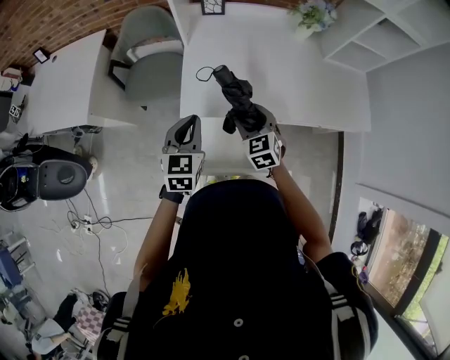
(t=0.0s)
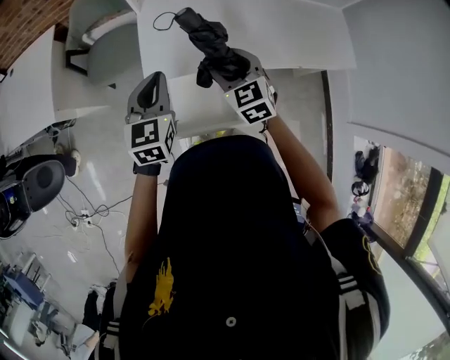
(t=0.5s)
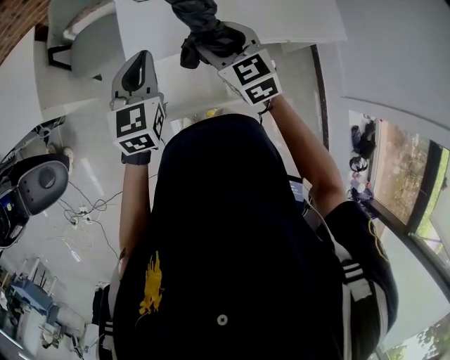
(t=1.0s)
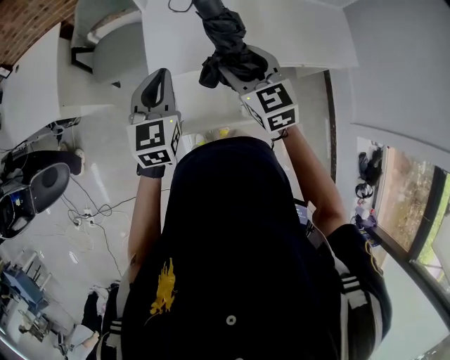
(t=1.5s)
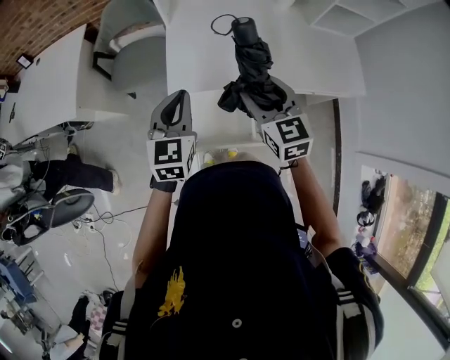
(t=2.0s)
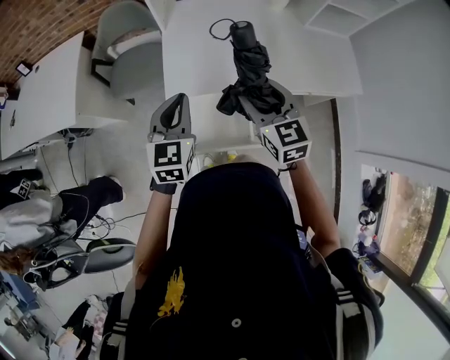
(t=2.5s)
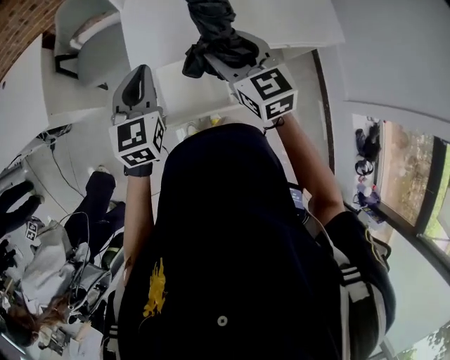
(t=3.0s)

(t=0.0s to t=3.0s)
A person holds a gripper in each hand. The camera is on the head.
t=0.0s - t=1.5s: The right gripper shifts about 15 cm upward and backward. Meanwhile the left gripper goes some 5 cm upward.
t=1.5s - t=3.0s: The grippers move only a little.

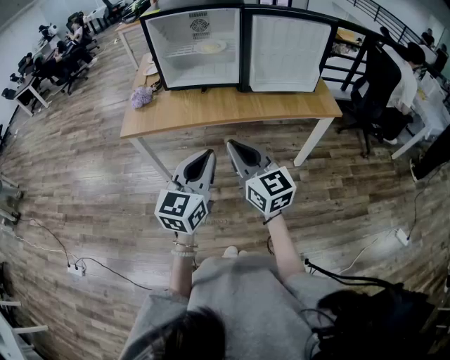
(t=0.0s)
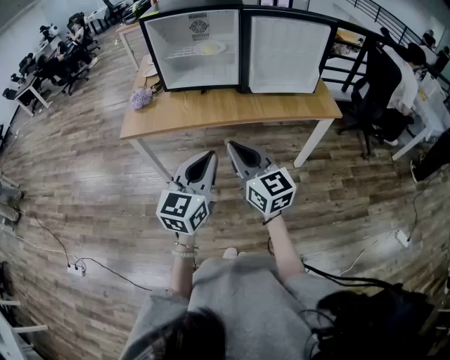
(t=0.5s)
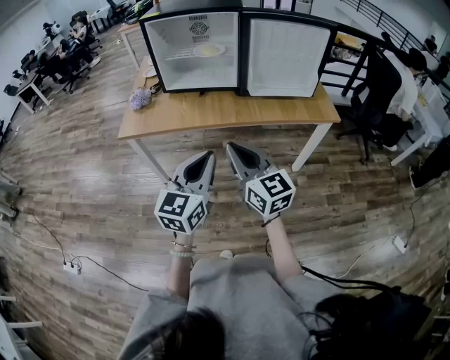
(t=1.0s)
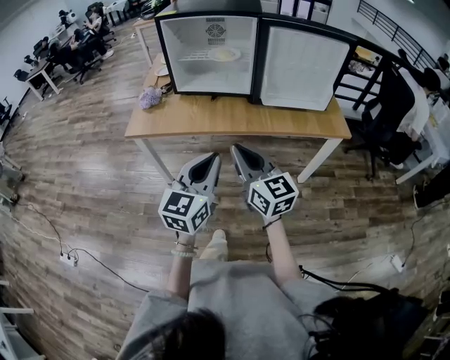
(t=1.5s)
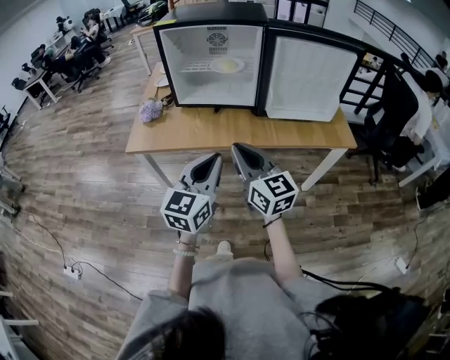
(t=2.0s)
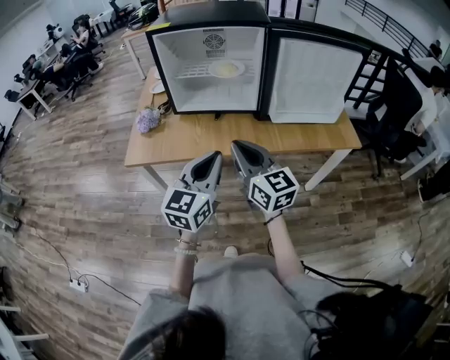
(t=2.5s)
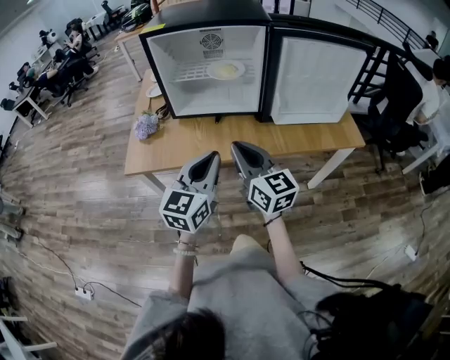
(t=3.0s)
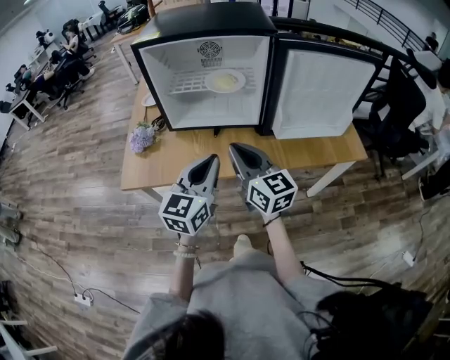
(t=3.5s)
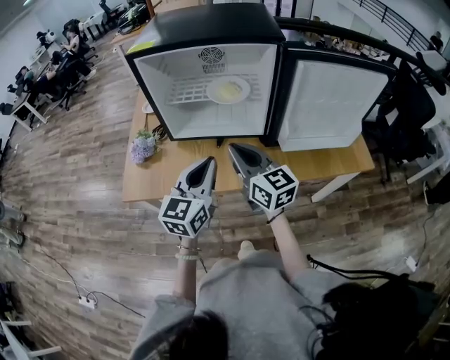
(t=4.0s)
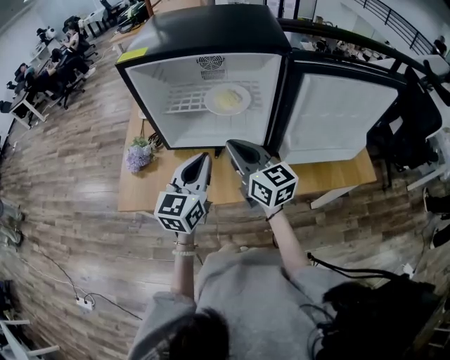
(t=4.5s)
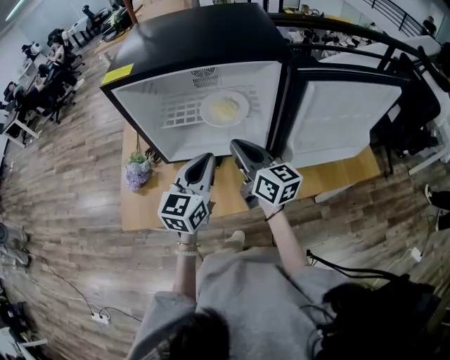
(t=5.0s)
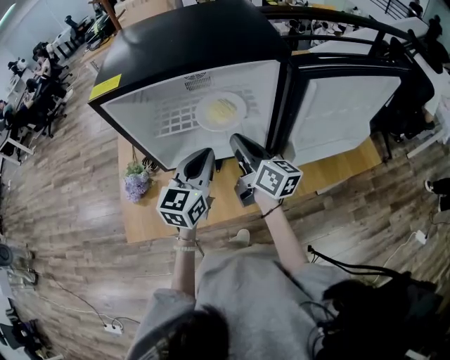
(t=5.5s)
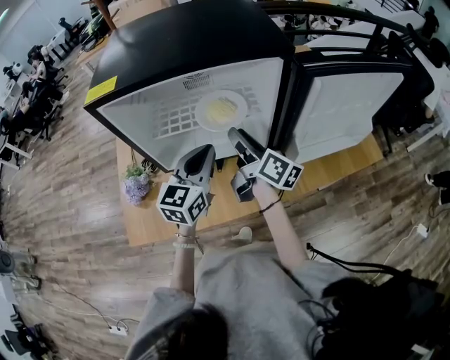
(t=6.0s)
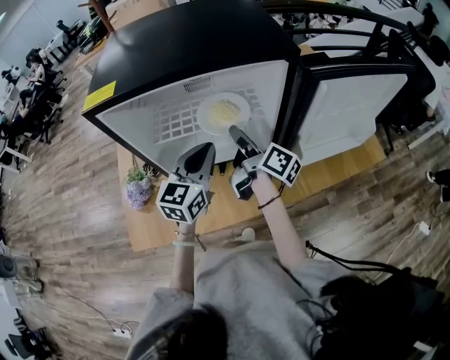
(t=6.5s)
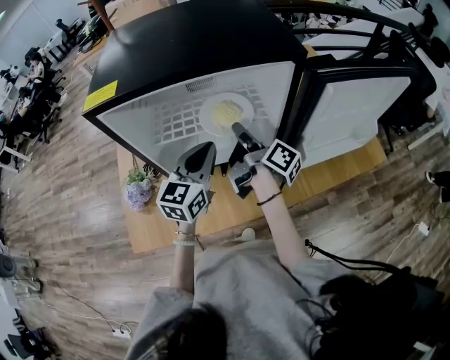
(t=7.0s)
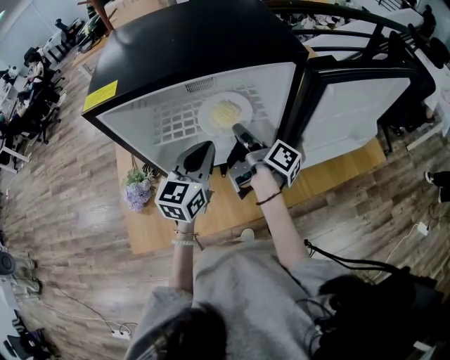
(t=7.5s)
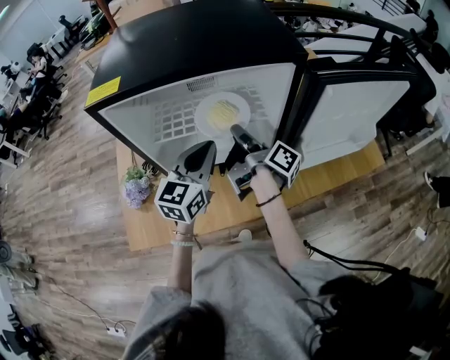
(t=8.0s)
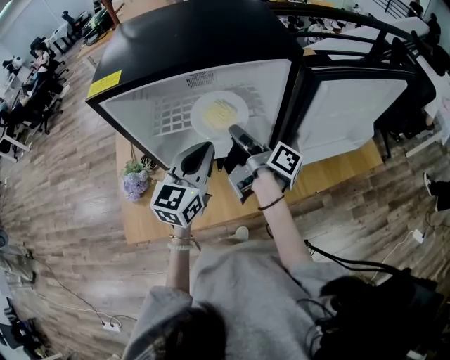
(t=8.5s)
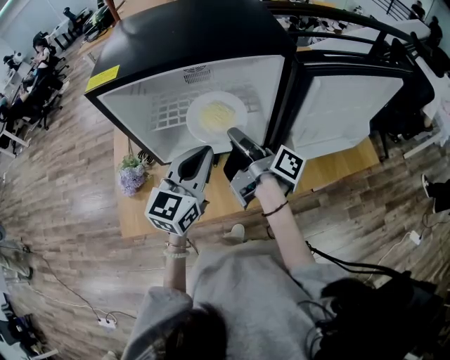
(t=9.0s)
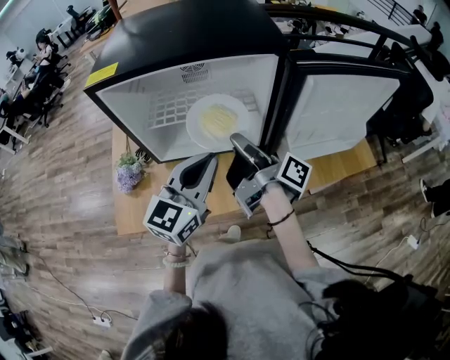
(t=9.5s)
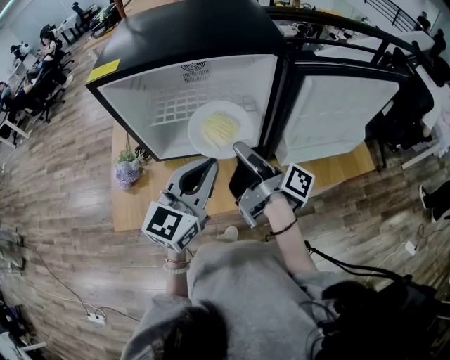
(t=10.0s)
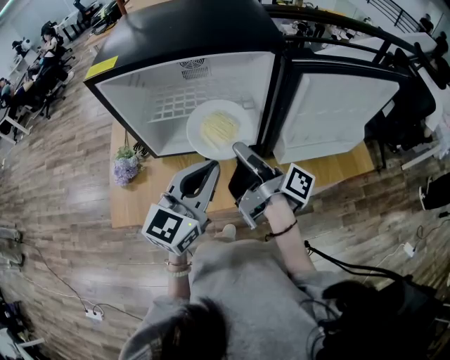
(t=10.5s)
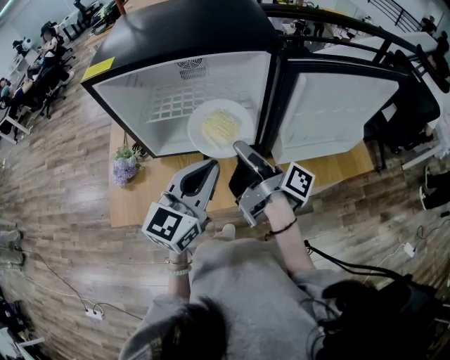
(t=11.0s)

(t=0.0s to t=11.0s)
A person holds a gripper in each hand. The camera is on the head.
t=0.0s - t=2.0s: The grippers both shift forward by some 10 cm.
t=2.0s - t=3.5s: Both grippers travel together forward, roughly 15 cm.
t=3.5s - t=5.5s: Both grippers move forward, roughly 20 cm. The right gripper turns by approximately 30 degrees.
t=5.5s - t=7.5s: The right gripper goes about 5 cm forward, rotates around the line of its fingers by approximately 50 degrees, clockwise from behind, and opens, then closes once more.
t=7.5s - t=9.0s: The grippers both shift backward by about 5 cm.
t=9.0s - t=11.0s: Both grippers travel together backward, about 5 cm.

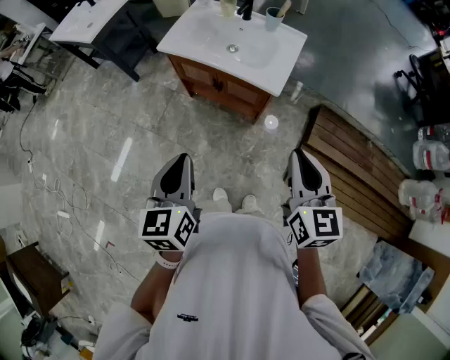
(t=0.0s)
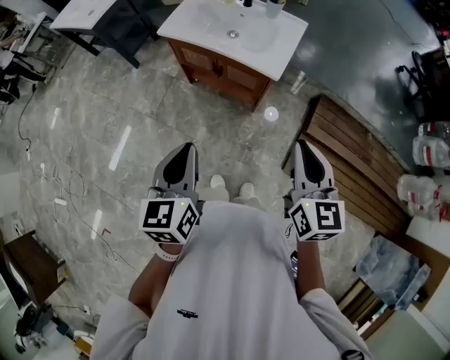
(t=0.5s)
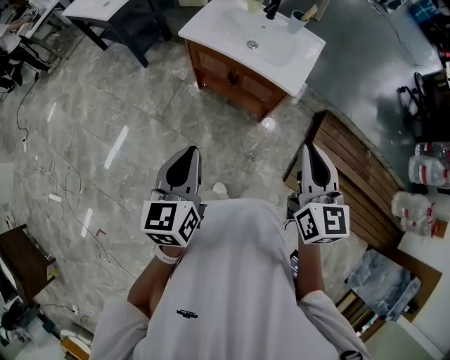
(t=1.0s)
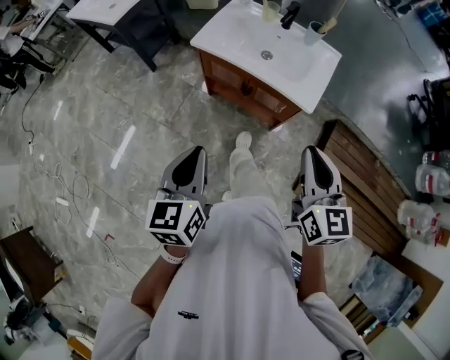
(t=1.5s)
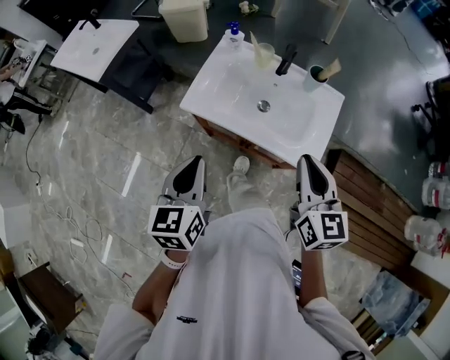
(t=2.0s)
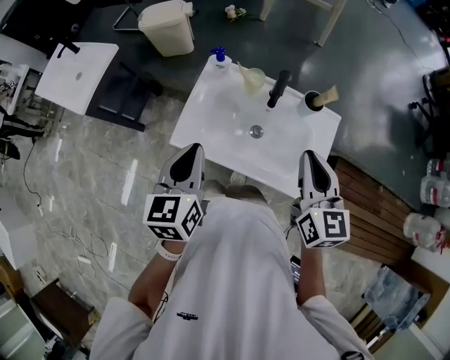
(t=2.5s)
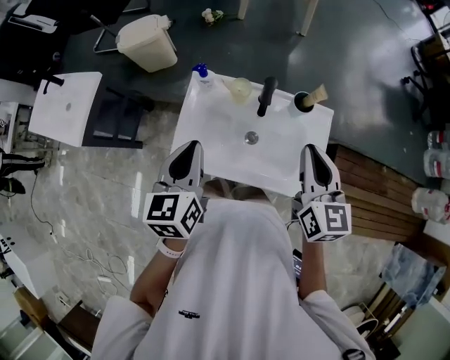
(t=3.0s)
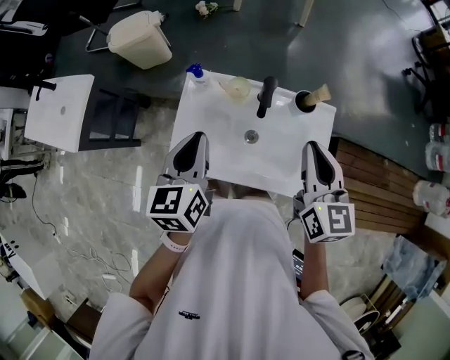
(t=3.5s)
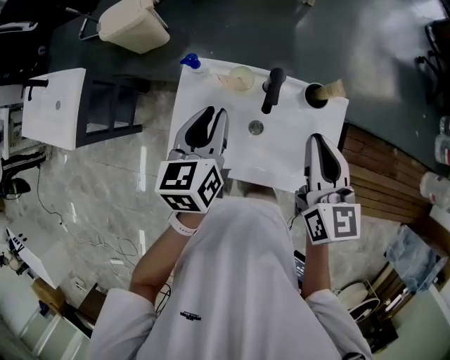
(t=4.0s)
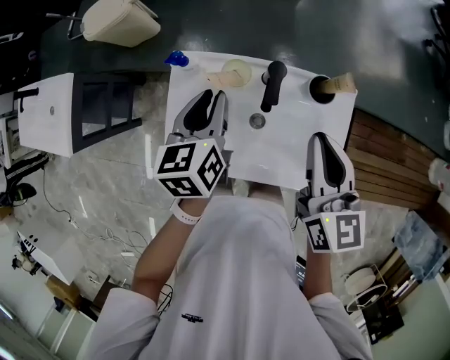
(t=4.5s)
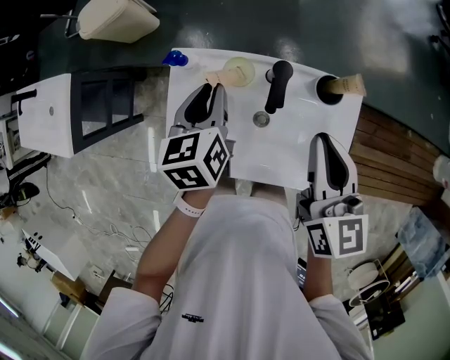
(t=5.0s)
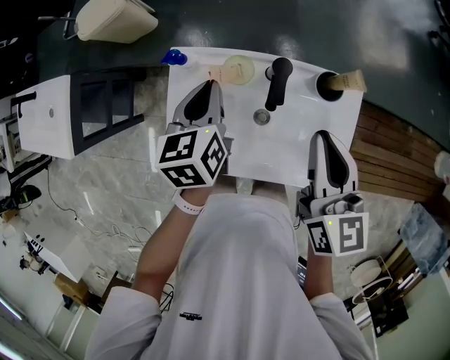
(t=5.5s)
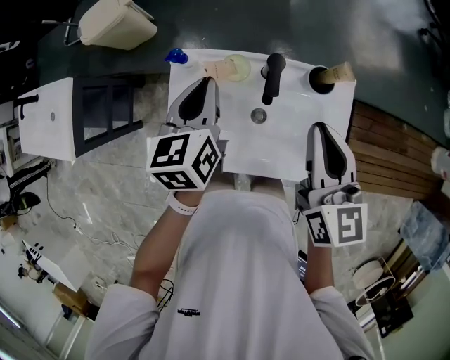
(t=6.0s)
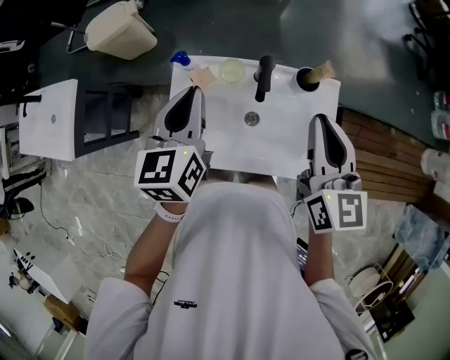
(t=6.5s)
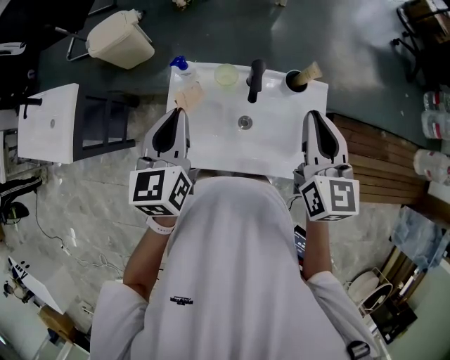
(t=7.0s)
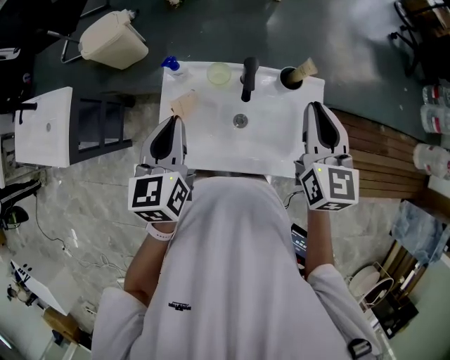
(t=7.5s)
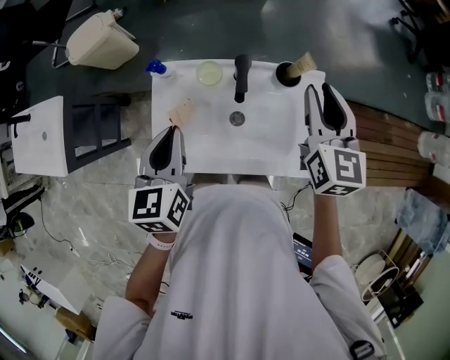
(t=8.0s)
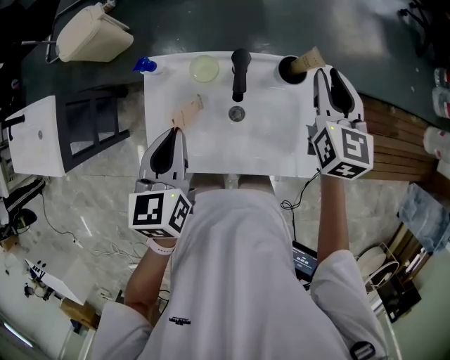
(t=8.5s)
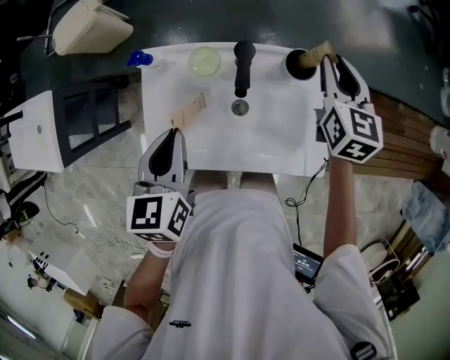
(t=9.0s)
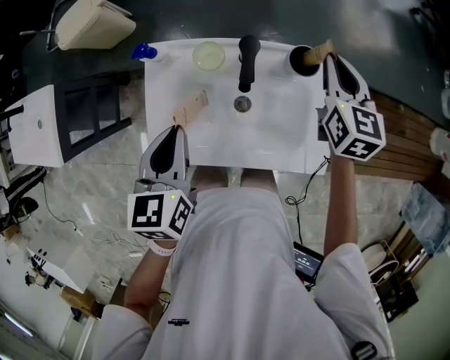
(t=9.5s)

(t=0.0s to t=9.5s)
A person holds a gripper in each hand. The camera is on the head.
t=0.0s - t=2.0s: Both grippers move forward, approximately 30 cm.
t=2.0s - t=4.0s: The grippers both shift forward by roughly 30 cm.
t=4.0s - t=5.5s: The left gripper moves downward and forward, roughly 10 cm.
t=5.5s - t=7.5s: The left gripper heads upward and backward, covering about 15 cm. The right gripper heads upward, covering approximately 5 cm.
t=7.5s - t=9.5s: The right gripper is displaced downward and forward by approximately 20 cm. Meanwhile the left gripper shifts some 10 cm downward.

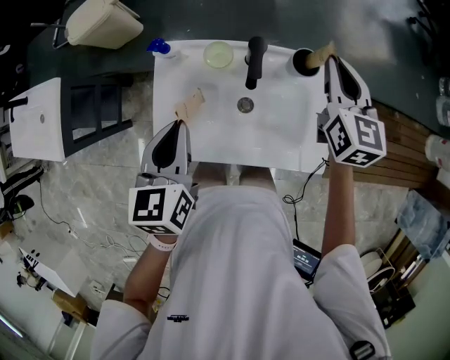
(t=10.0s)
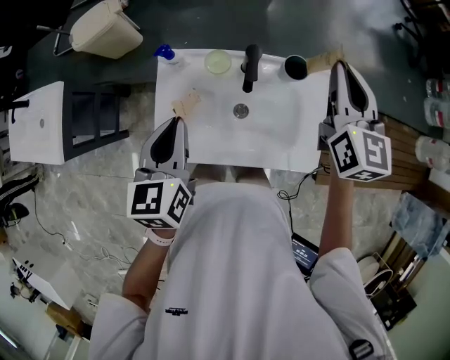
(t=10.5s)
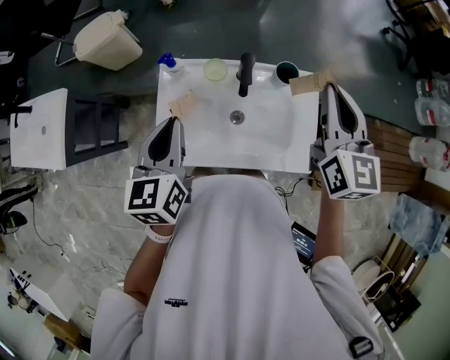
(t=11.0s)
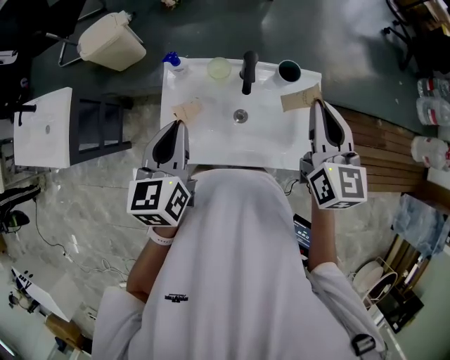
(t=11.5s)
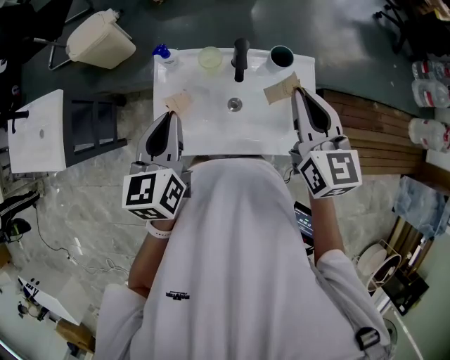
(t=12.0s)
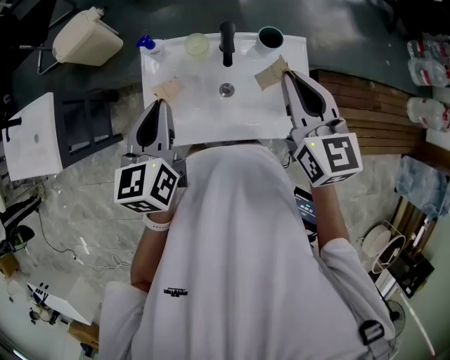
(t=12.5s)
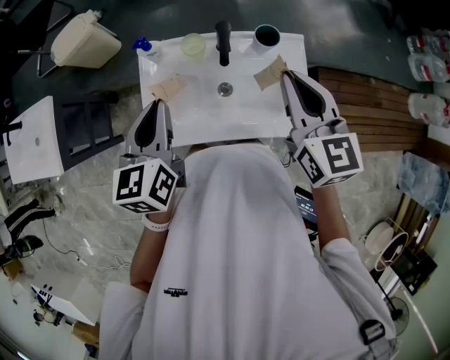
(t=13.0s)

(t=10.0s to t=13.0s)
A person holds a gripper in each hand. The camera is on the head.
t=10.0s - t=11.5s: The right gripper moves backward and upward, some 15 cm. The left gripper goes some 5 cm upward.
t=11.5s - t=13.0s: The grippers stay close to where they were, moving slightly.
